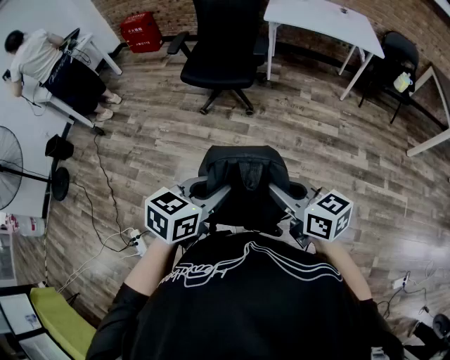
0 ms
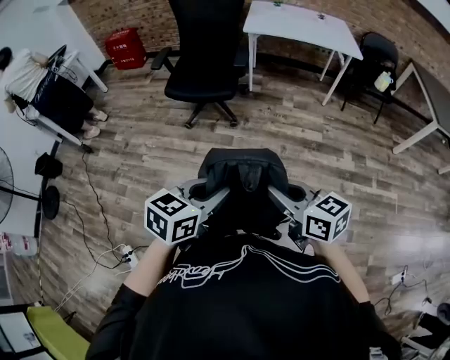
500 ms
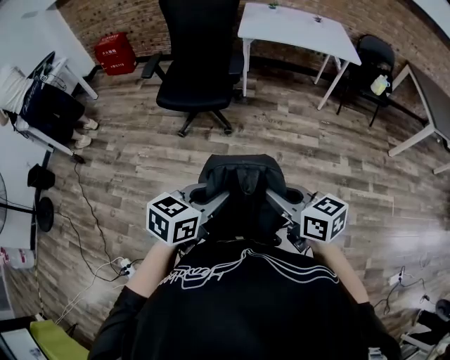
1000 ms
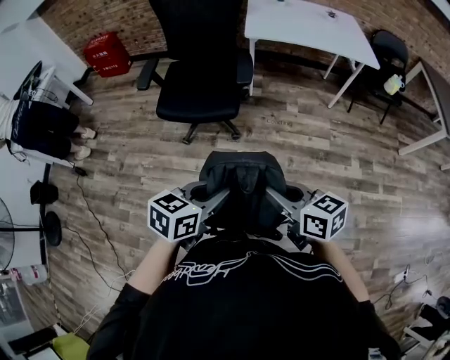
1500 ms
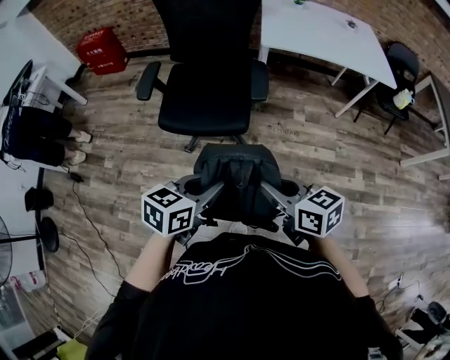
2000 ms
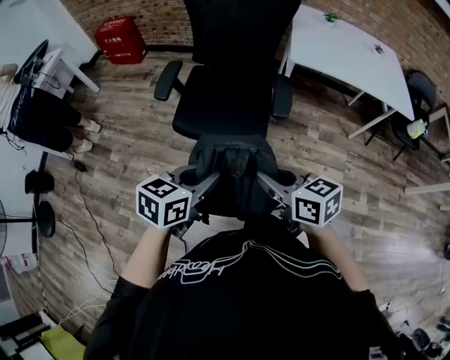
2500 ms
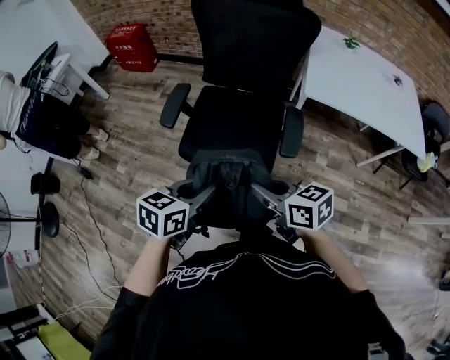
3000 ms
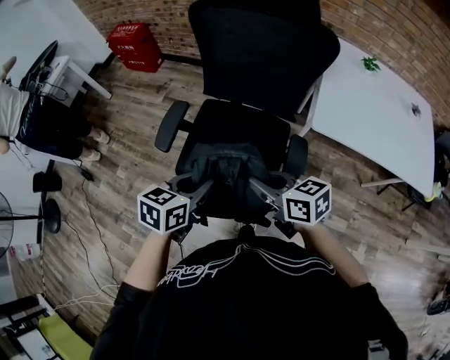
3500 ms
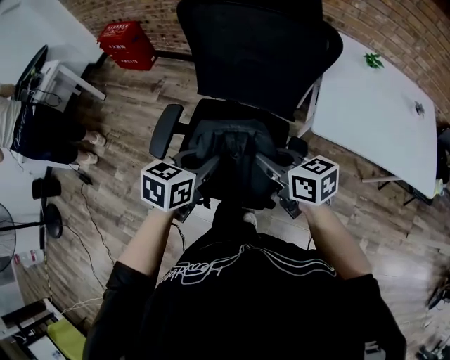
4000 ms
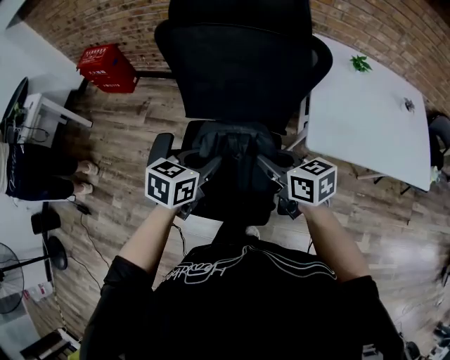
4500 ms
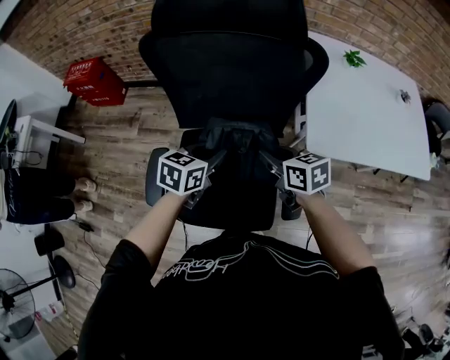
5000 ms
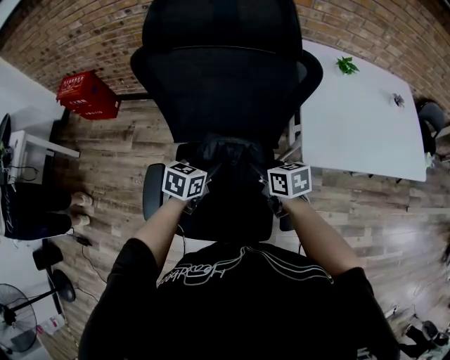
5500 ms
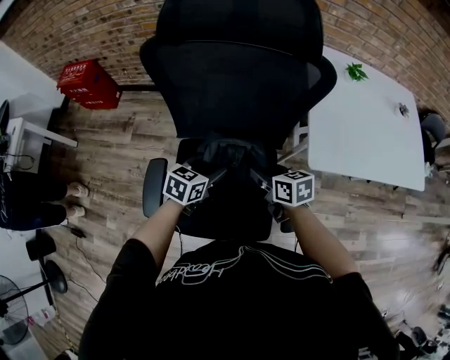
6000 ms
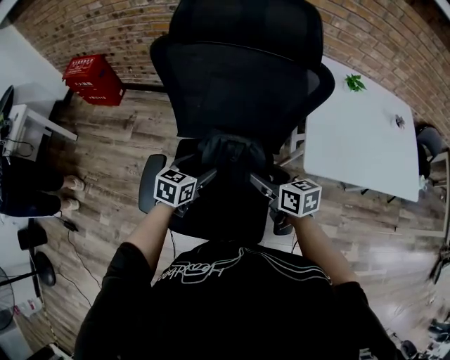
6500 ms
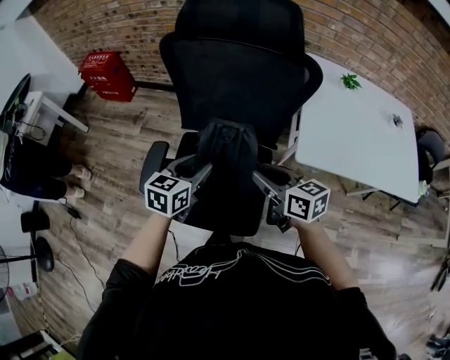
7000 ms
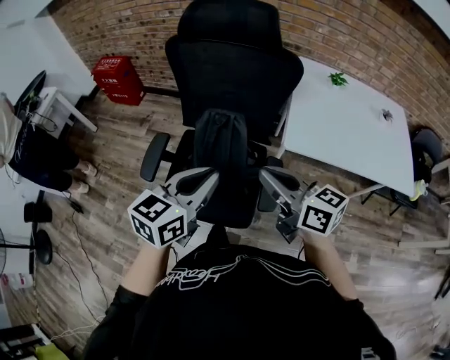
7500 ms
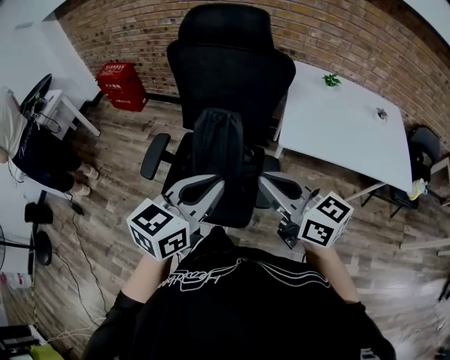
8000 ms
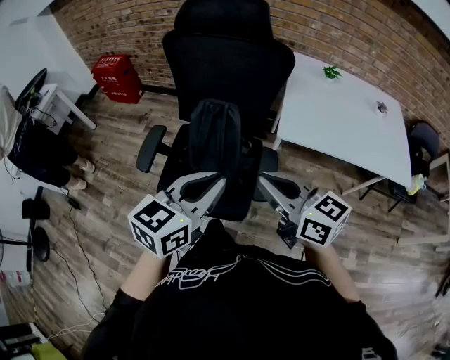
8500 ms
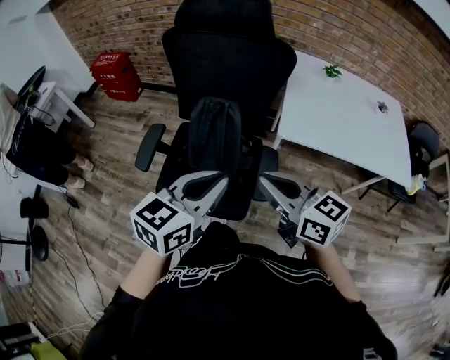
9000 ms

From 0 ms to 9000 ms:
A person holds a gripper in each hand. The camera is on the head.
From 0 ms to 2000 ms: Both grippers travel together forward, approximately 35 cm.
From 2000 ms to 4500 ms: Both grippers are carried forward, about 50 cm.
From 4500 ms to 7000 ms: The right gripper travels downward and back again, approximately 10 cm each way, and opens up. The left gripper travels downward and back again, about 10 cm each way, and opens, then closes once more.
From 7000 ms to 9000 ms: The left gripper goes approximately 30 cm backward, upward and to the right, and closes up. Meanwhile the right gripper travels backward and upward by approximately 20 cm, and closes up.

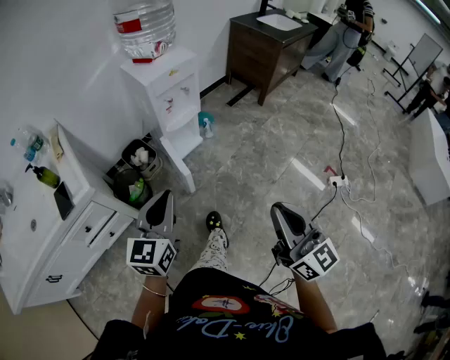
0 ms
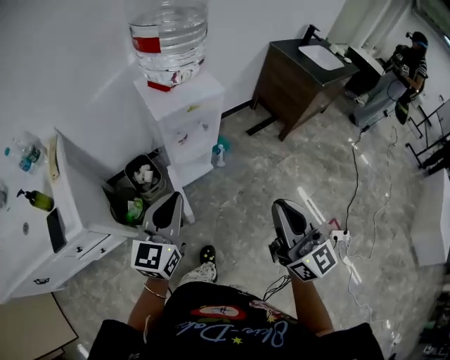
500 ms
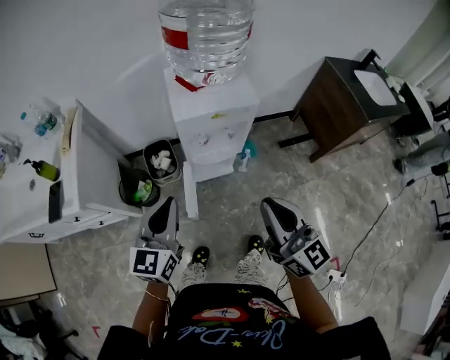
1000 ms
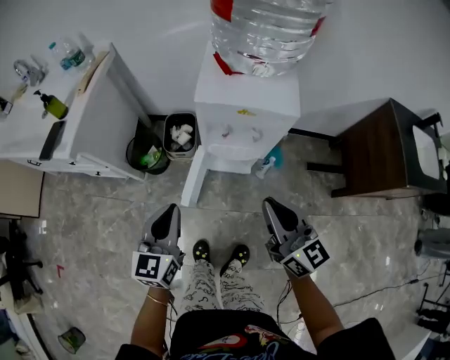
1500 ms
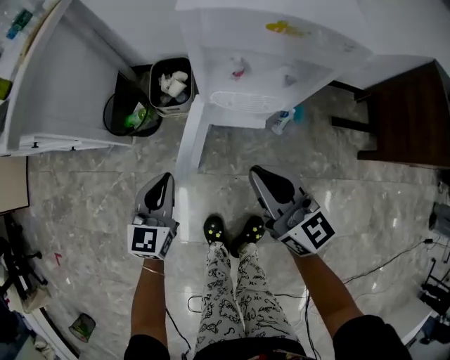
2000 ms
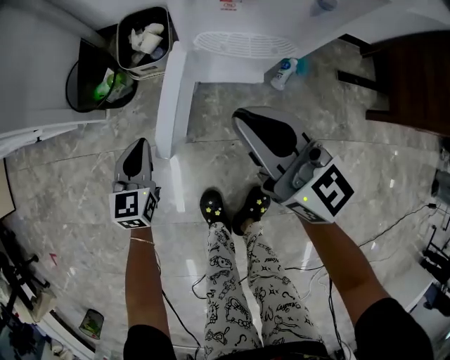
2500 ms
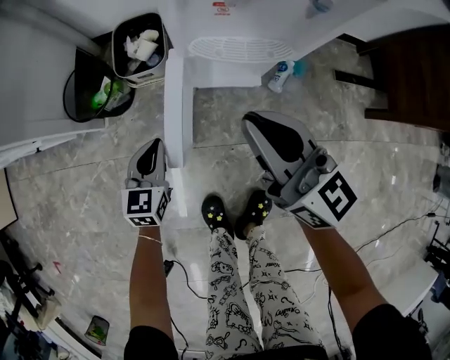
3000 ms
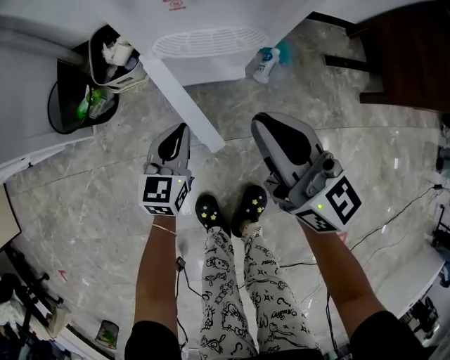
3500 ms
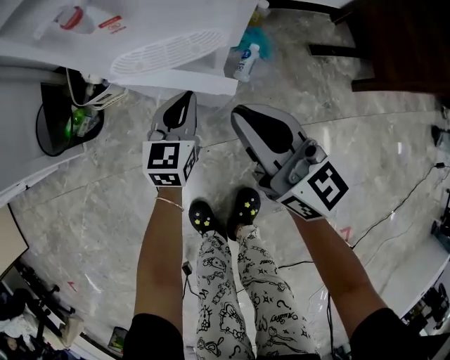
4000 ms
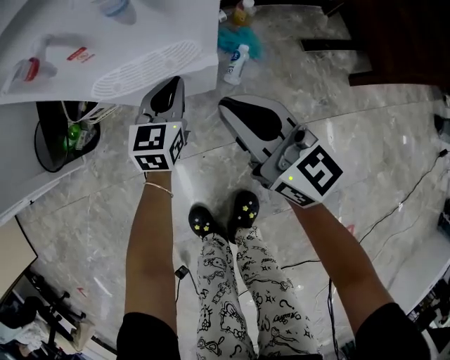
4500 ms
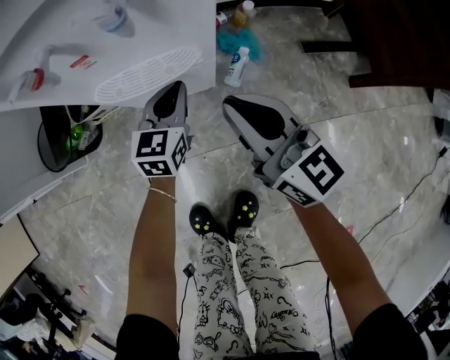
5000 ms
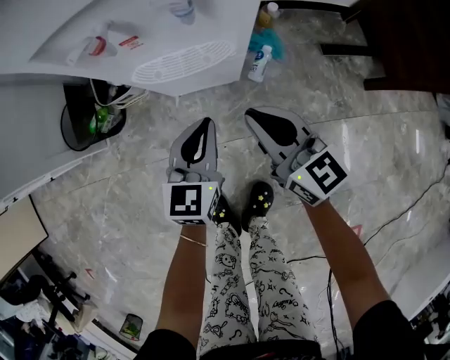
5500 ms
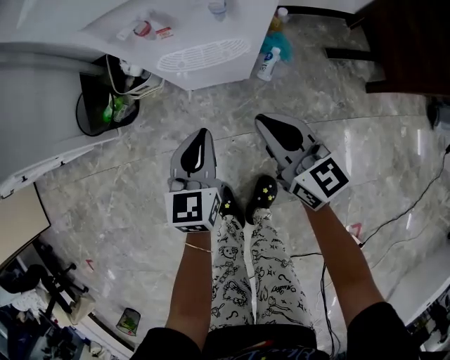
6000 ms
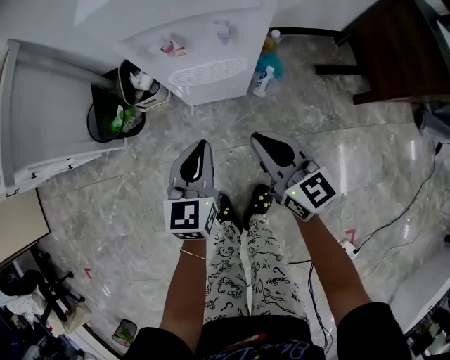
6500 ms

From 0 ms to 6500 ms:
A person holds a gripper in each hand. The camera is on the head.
From 0 ms to 2000 ms: The left gripper is displaced downward by some 35 cm, and swivels some 50 degrees; the right gripper changes place by roughly 60 cm, and turns by roughly 60 degrees.
From 2000 ms to 4500 ms: The left gripper travels to the right, downward and forward by approximately 40 cm; the right gripper heads downward and to the right, covering about 20 cm.
From 4500 ms to 6500 ms: The right gripper is displaced upward, backward and to the left by roughly 15 cm. Meanwhile the left gripper moves upward, backward and to the left, about 30 cm.

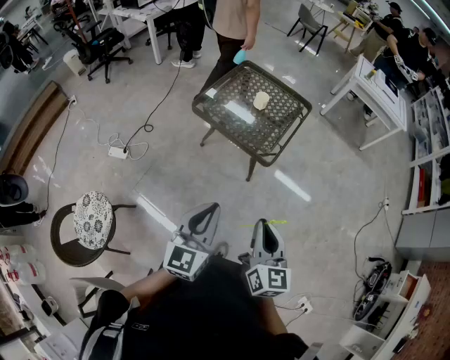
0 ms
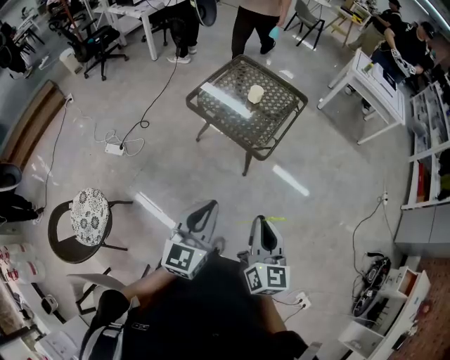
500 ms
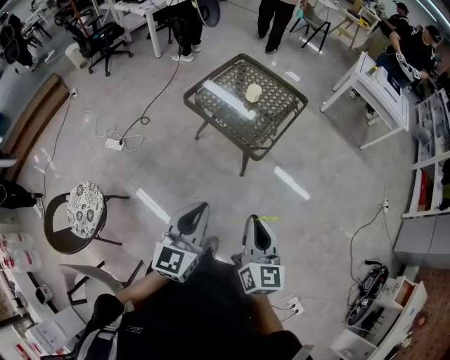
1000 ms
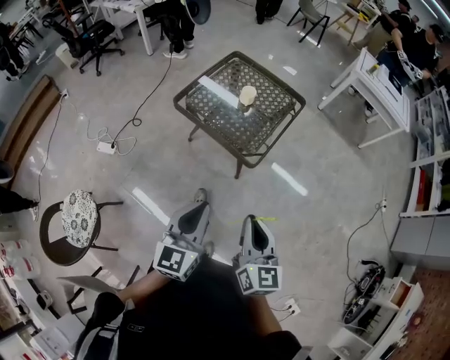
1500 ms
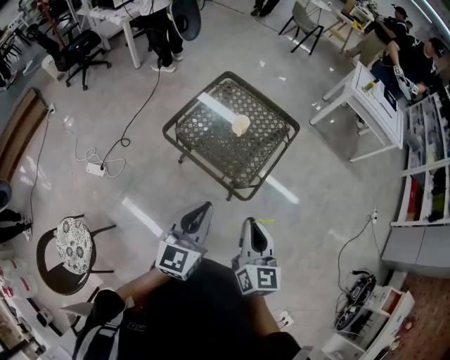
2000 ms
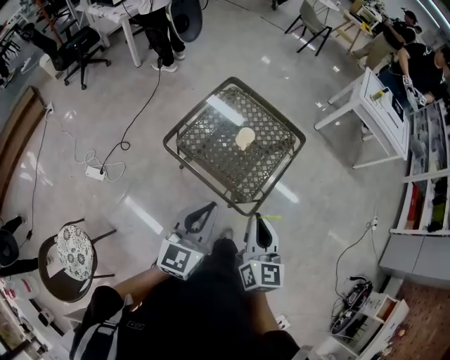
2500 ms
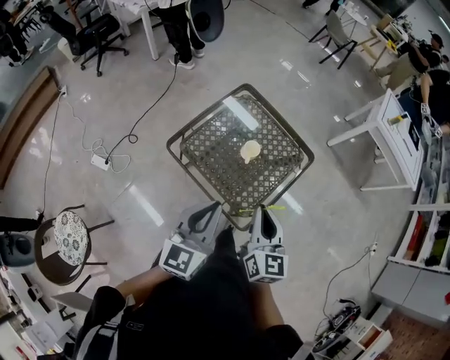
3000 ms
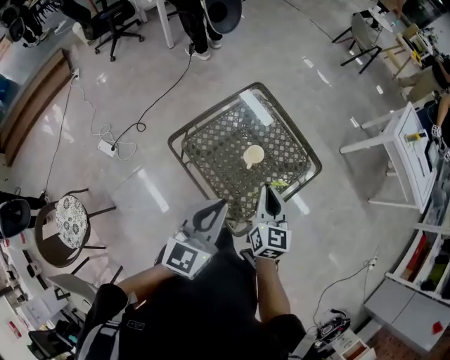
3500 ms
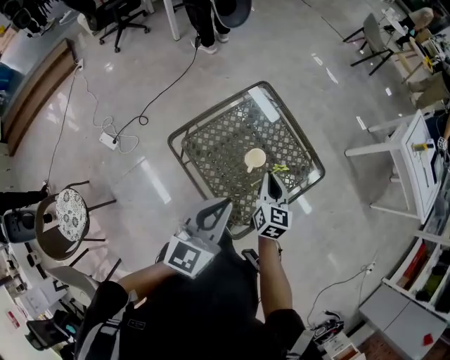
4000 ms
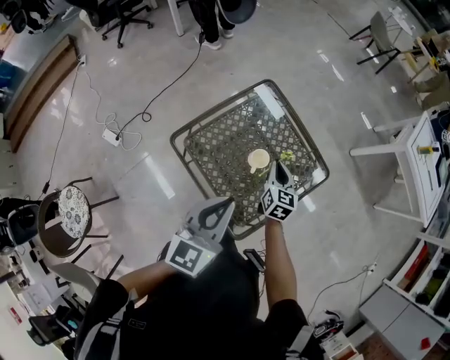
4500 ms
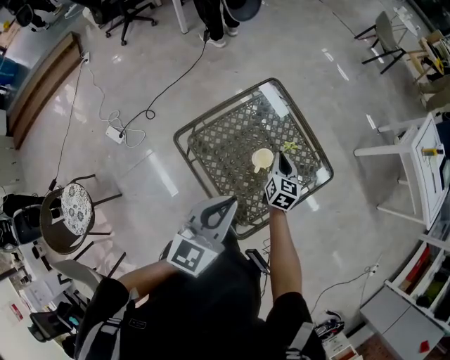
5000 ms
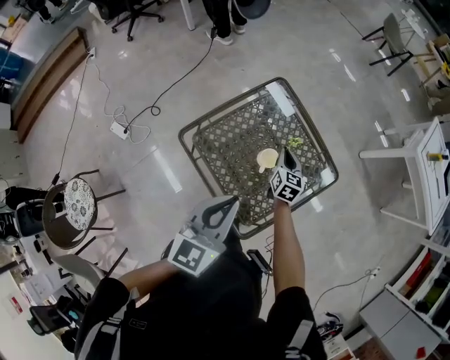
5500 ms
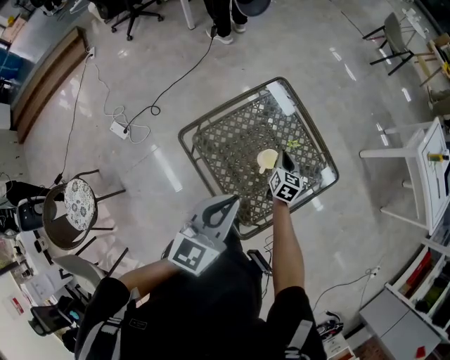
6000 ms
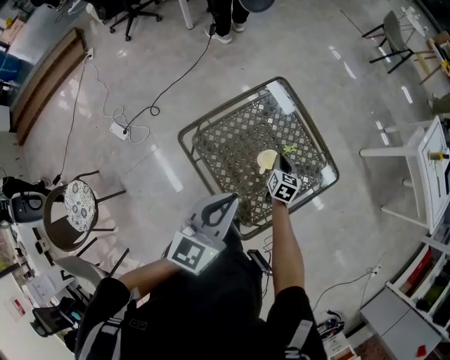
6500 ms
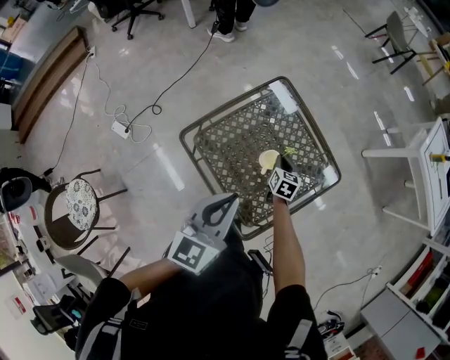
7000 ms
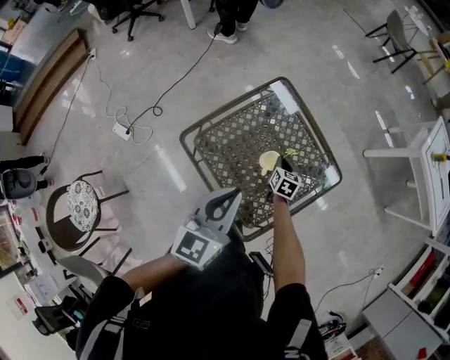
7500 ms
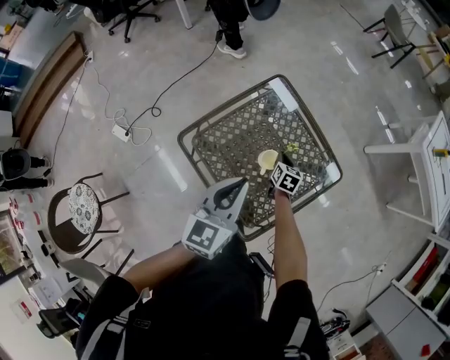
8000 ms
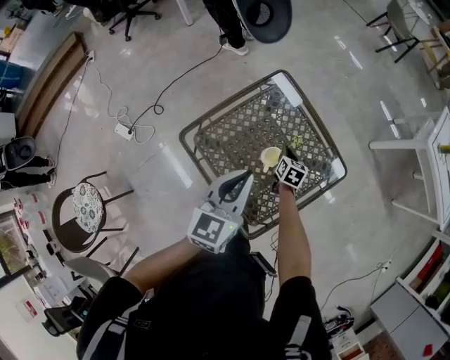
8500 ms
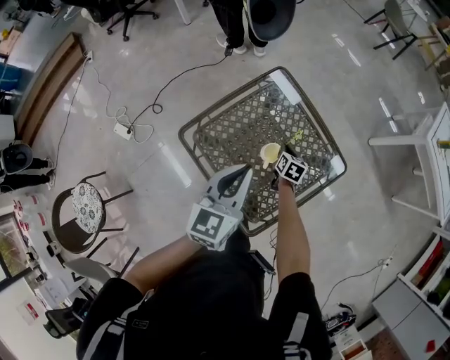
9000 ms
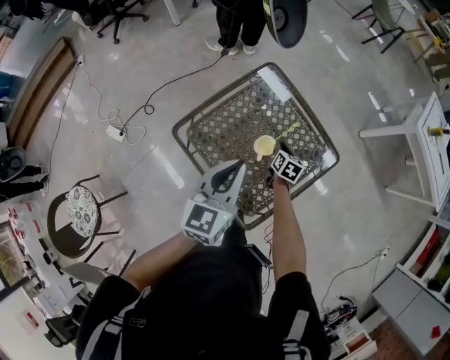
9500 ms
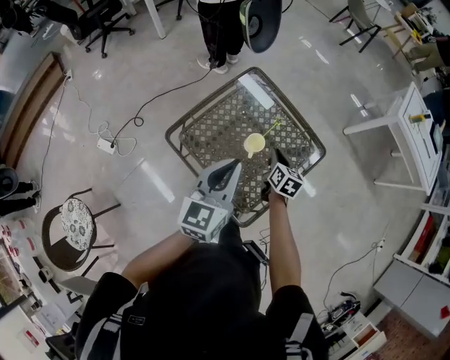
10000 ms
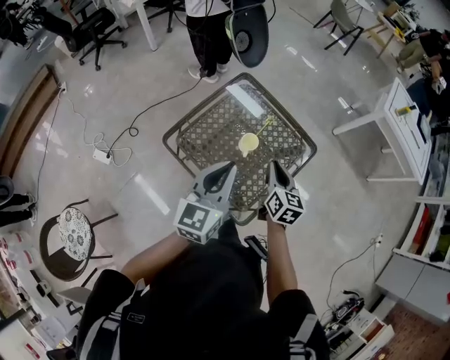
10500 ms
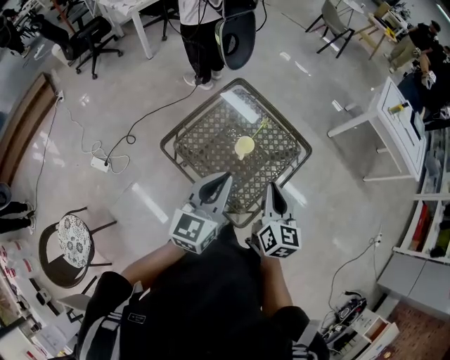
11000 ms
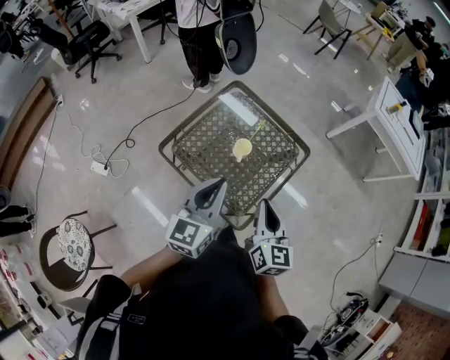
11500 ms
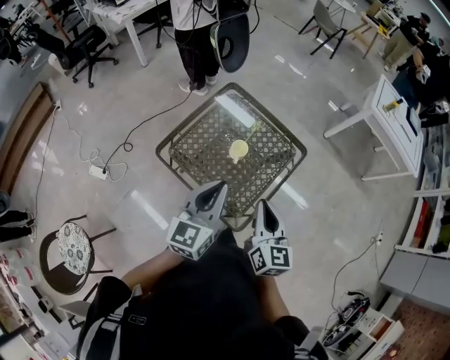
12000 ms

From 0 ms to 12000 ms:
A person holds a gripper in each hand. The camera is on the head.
From 0 ms to 2000 ms: Both grippers move forward, some 25 cm.
From 2000 ms to 4000 ms: The left gripper is displaced forward by approximately 30 cm. The right gripper goes some 40 cm forward.
From 4000 ms to 6000 ms: The right gripper is displaced downward and forward by roughly 20 cm.
From 6000 ms to 8000 ms: The left gripper is displaced forward by roughly 5 cm. The right gripper heads downward, covering some 10 cm.
From 8000 ms to 10000 ms: The right gripper is displaced upward and backward by about 15 cm.
From 10000 ms to 12000 ms: The left gripper travels backward by roughly 10 cm, while the right gripper moves backward and upward, approximately 30 cm, and swivels about 20 degrees.
